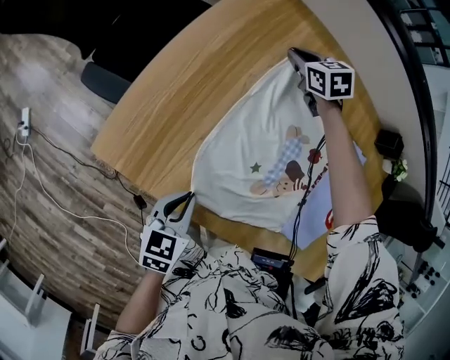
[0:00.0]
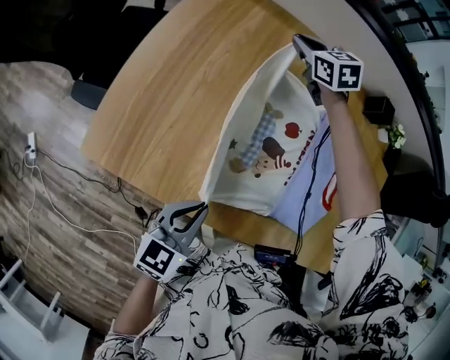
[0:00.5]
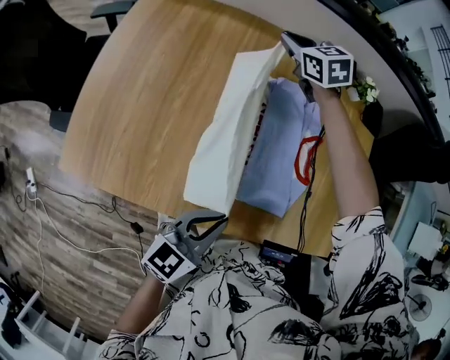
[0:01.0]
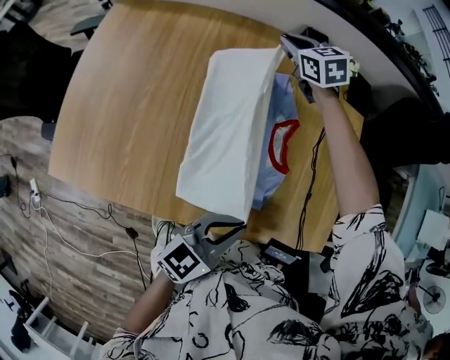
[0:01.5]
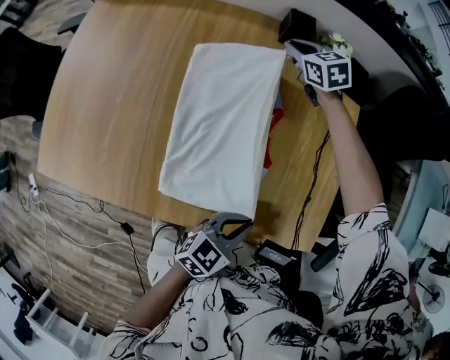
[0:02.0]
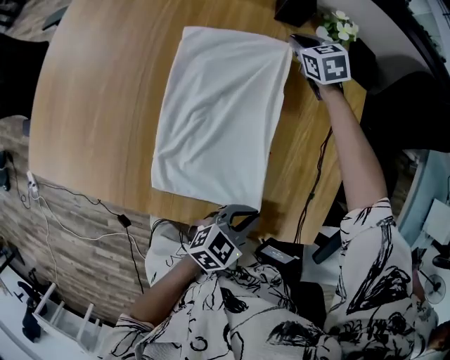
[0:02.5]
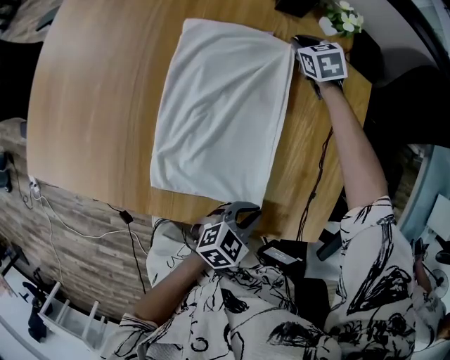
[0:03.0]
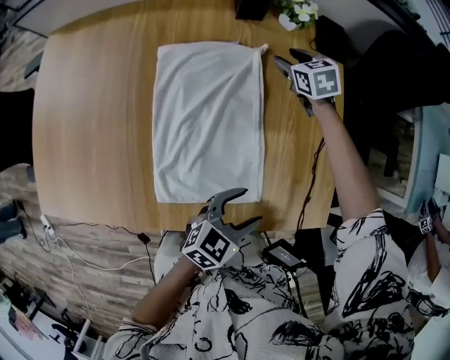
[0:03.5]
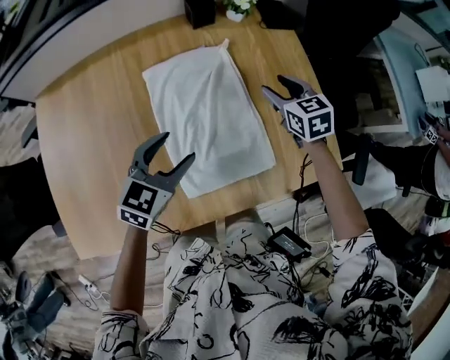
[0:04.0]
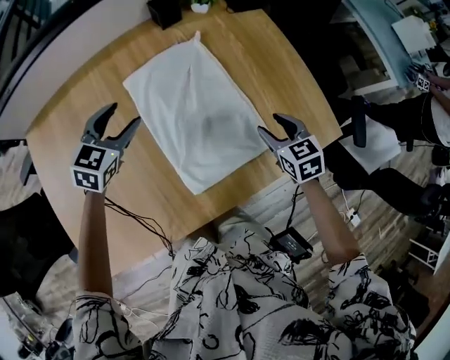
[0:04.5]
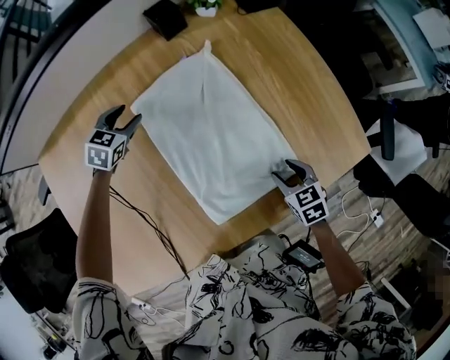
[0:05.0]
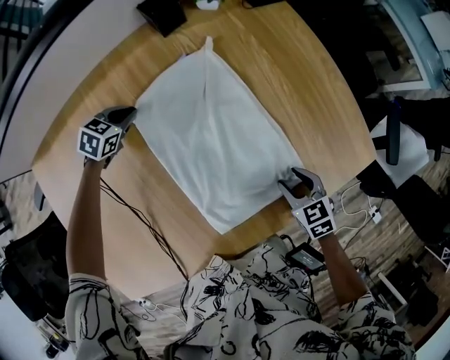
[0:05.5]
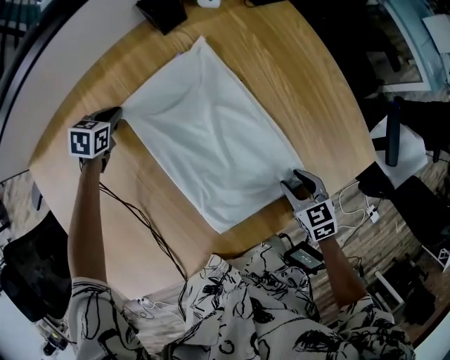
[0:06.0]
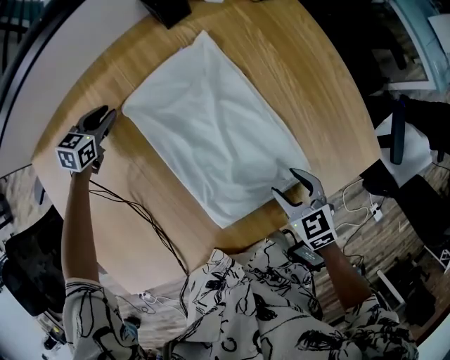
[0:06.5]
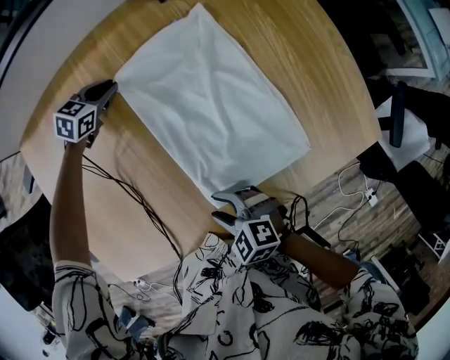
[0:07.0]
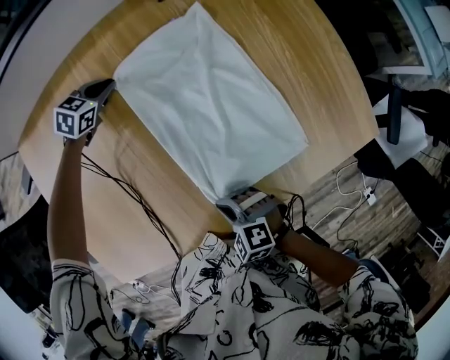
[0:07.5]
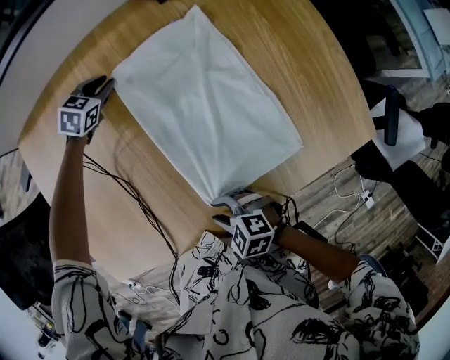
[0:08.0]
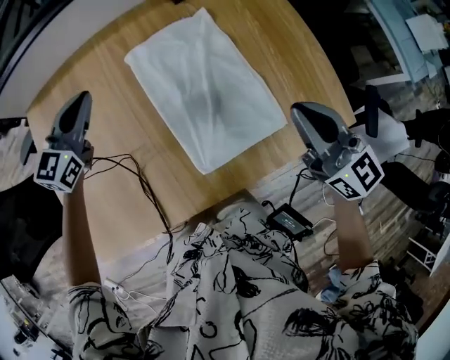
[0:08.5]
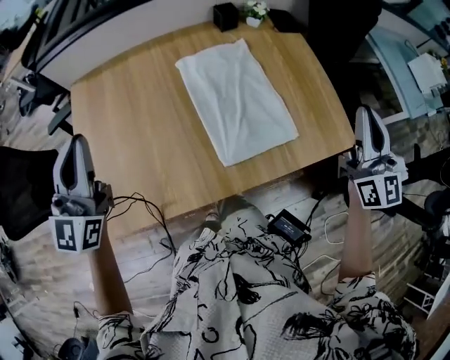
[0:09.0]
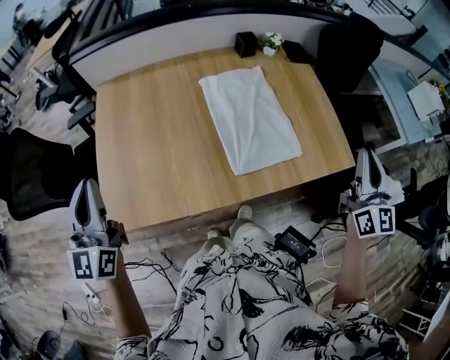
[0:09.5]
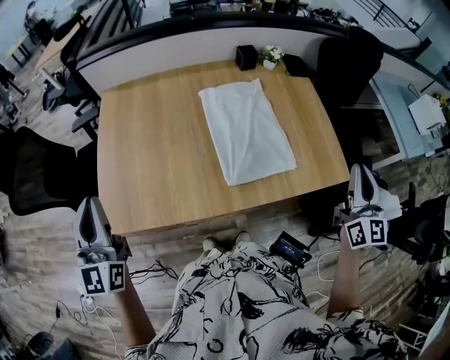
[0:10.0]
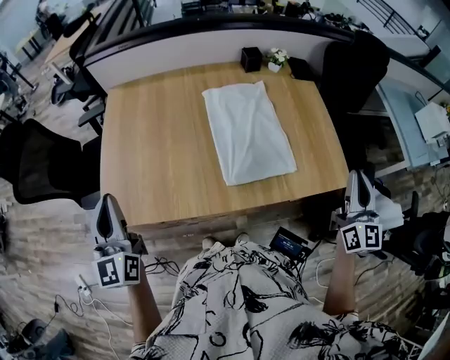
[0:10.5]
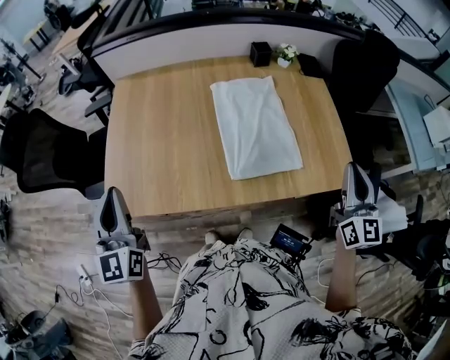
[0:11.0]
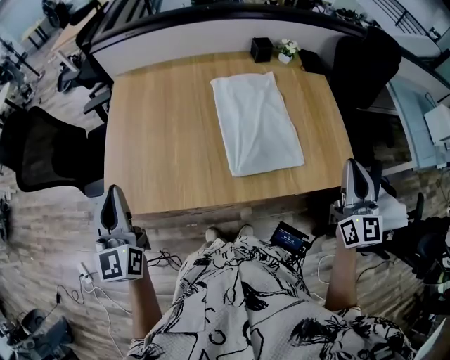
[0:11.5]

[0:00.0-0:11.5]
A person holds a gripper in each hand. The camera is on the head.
0:00.0 to 0:02.0: The two grippers travel together, some 60 cm. The left gripper turns by about 50 degrees.
0:02.0 to 0:04.0: The left gripper goes some 25 cm to the left, turns by some 20 degrees, and opens up. The right gripper shifts roughly 30 cm backward and to the right, turns by about 30 degrees, and opens.
0:04.0 to 0:06.0: The left gripper is displaced forward, to the left and downward by some 40 cm, swivels about 30 degrees, and closes up. Meanwhile the right gripper is displaced backward and downward by approximately 25 cm, and swivels some 20 degrees.
0:06.0 to 0:07.5: The right gripper moves to the left and backward, roughly 25 cm, twists some 50 degrees counterclockwise, seen from behind, and closes.
0:07.5 to 0:09.5: The left gripper shifts about 70 cm backward, upward and to the left, and points its fingers roughly 60 degrees further upward. The right gripper goes some 50 cm upward and to the right, and angles its fingers upward, by roughly 60 degrees.
0:09.5 to 0:11.5: The left gripper moves to the right and backward, about 10 cm.

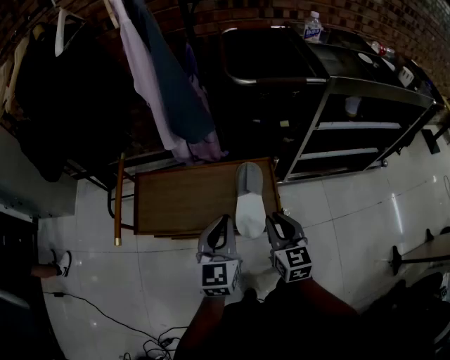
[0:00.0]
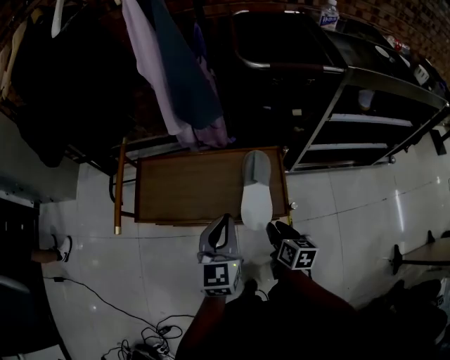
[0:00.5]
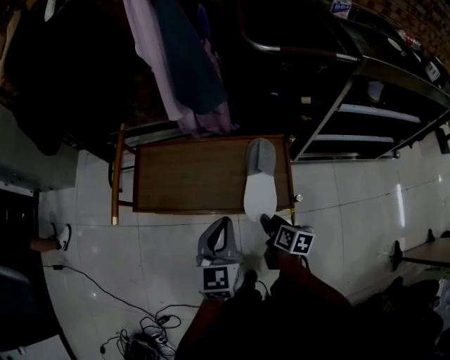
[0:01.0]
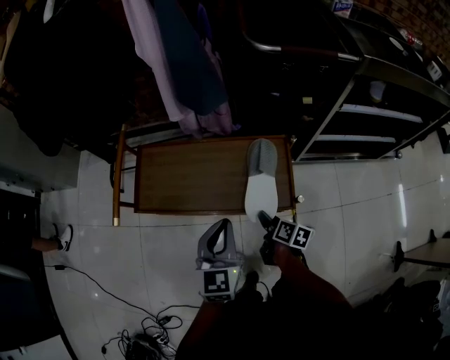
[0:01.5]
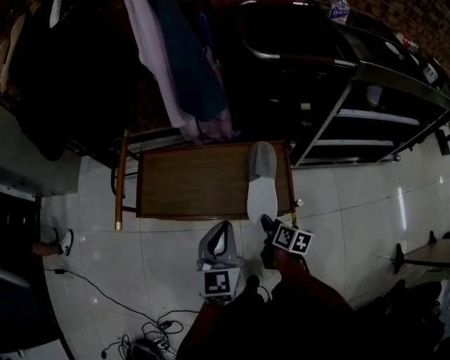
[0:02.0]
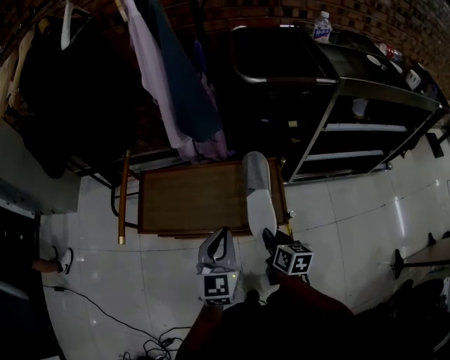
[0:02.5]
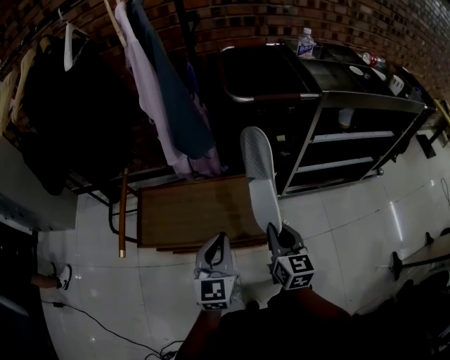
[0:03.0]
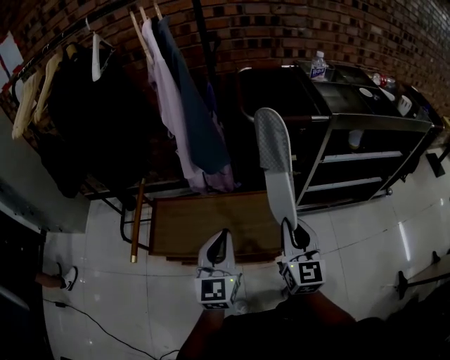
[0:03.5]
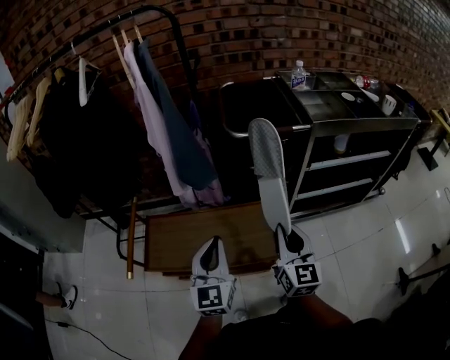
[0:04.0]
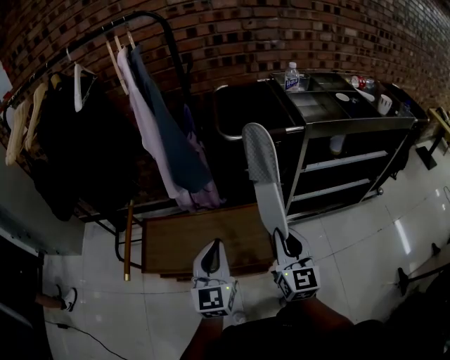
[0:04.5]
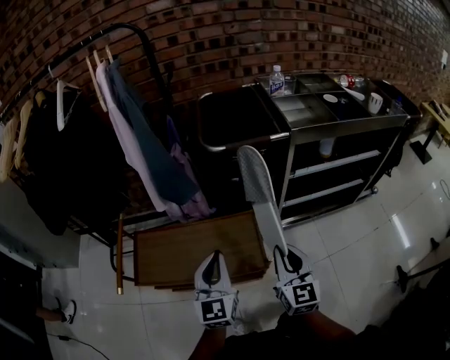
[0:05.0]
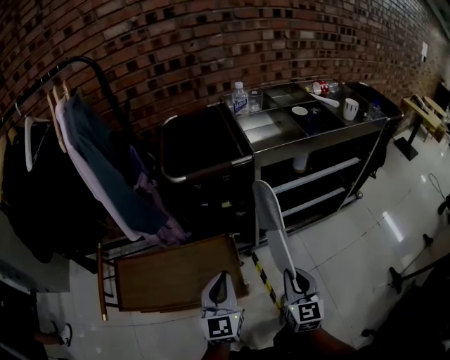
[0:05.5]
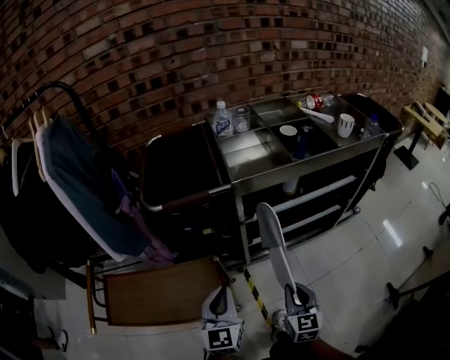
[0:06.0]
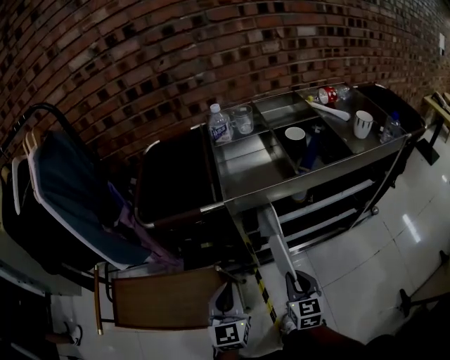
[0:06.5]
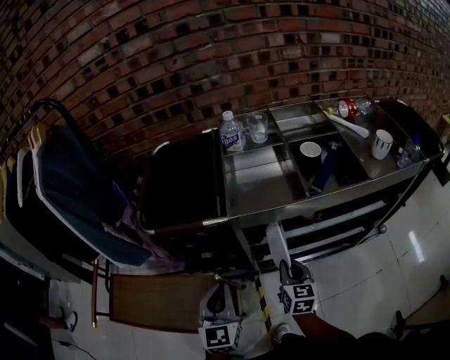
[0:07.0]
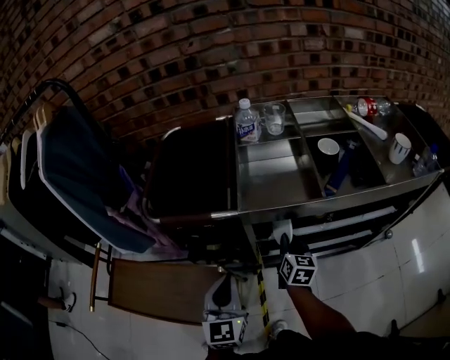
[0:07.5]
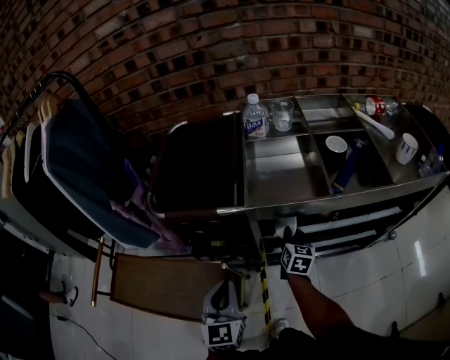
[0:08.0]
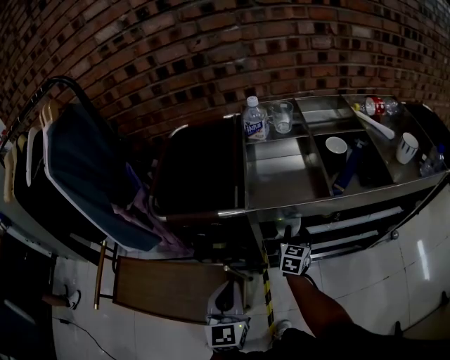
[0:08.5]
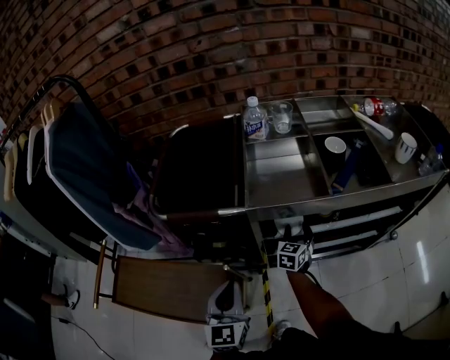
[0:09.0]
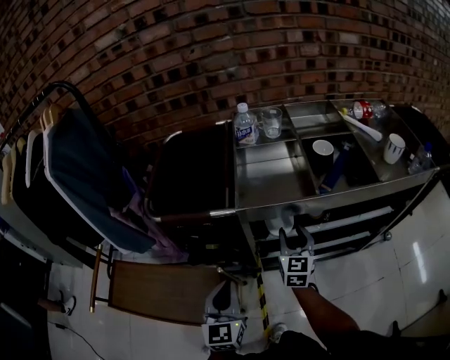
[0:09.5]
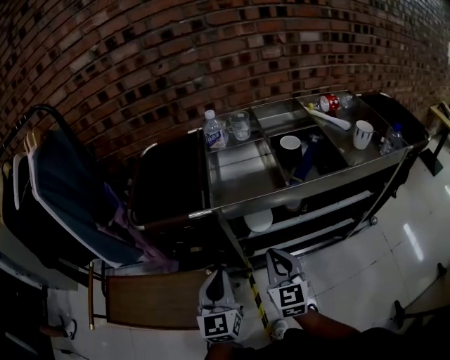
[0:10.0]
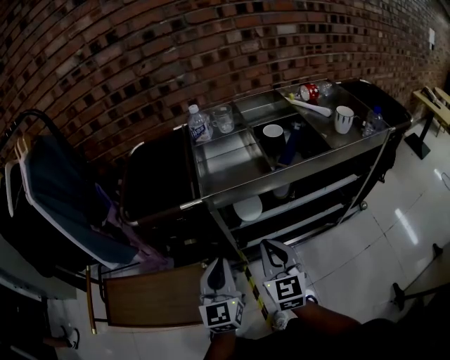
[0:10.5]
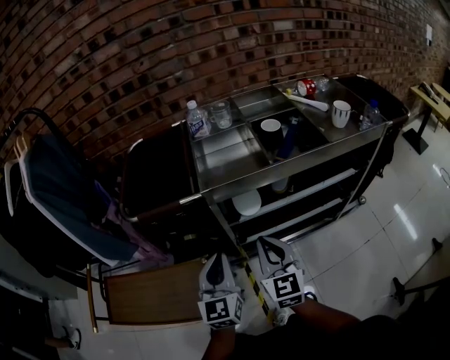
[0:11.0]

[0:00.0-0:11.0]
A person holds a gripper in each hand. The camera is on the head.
0:00.0 to 0:02.0: The left gripper shifts by approximately 5 cm. The right gripper is displaced downward by some 20 cm, twists approximately 50 degrees clockwise, seen from behind, and opens, then closes once more.
0:02.0 to 0:03.5: The left gripper goes about 10 cm upward, while the right gripper goes some 30 cm upward, and angles its fingers upward, by approximately 40 degrees.
0:03.5 to 0:05.5: Both grippers move to the right, some 20 cm.
0:05.5 to 0:07.5: The left gripper moves forward and to the right, some 20 cm, while the right gripper travels forward by about 35 cm, and changes its angle by roughly 20 degrees.
0:07.5 to 0:09.0: The right gripper moves downward and forward, approximately 10 cm, changes its angle by about 30 degrees, and opens.
0:09.0 to 0:11.0: The left gripper ends up about 5 cm from where it was; the right gripper is displaced backward and upward by about 30 cm, swivels roughly 30 degrees, and closes up.

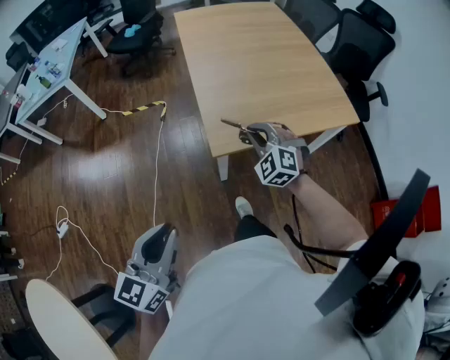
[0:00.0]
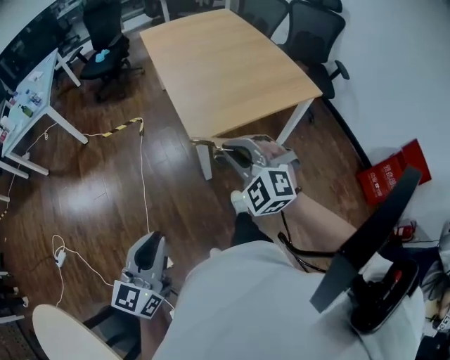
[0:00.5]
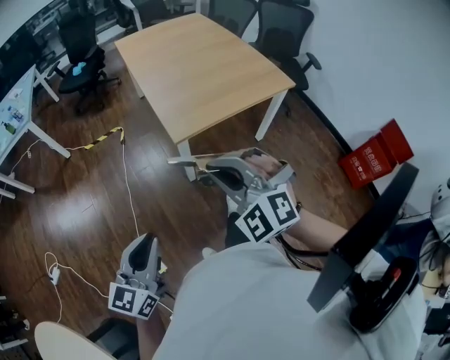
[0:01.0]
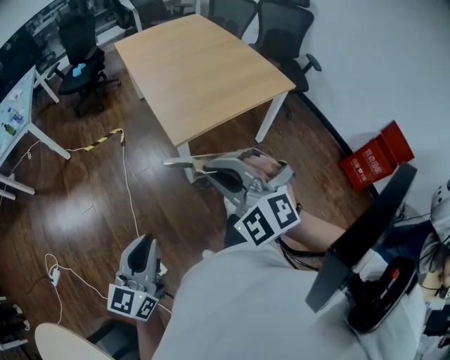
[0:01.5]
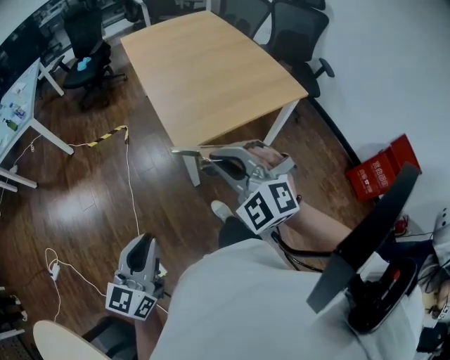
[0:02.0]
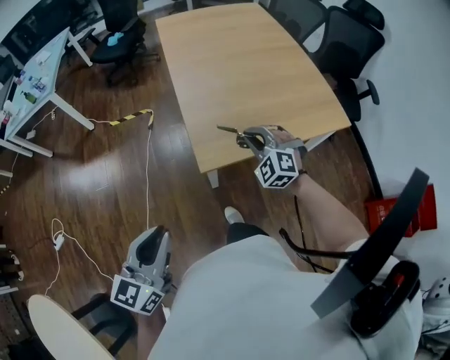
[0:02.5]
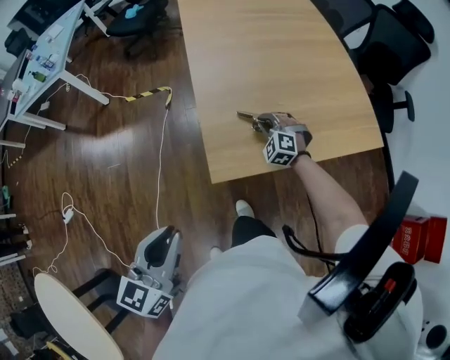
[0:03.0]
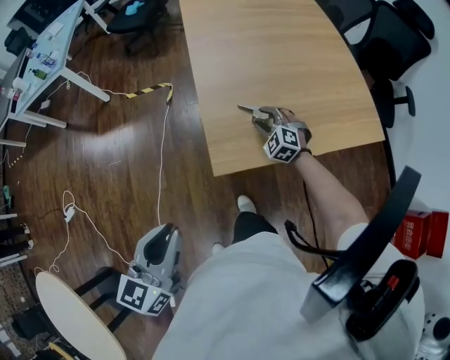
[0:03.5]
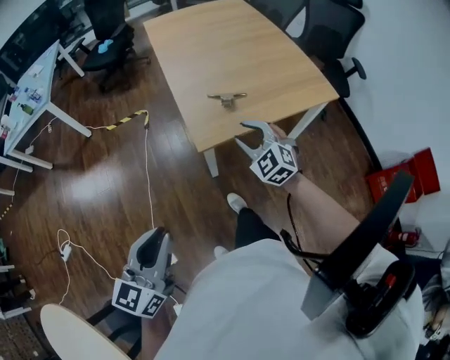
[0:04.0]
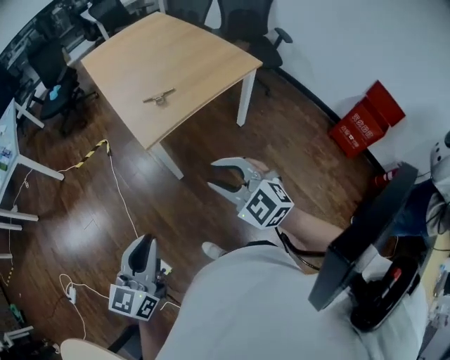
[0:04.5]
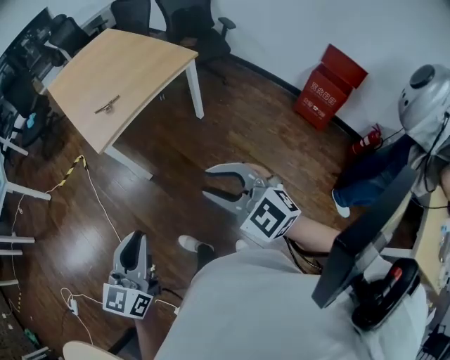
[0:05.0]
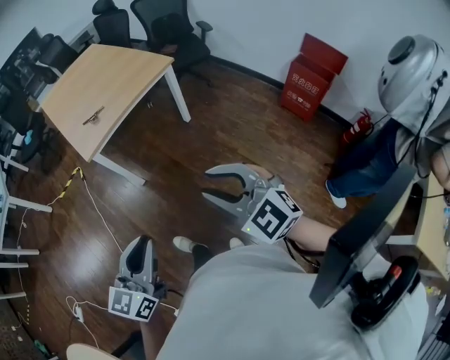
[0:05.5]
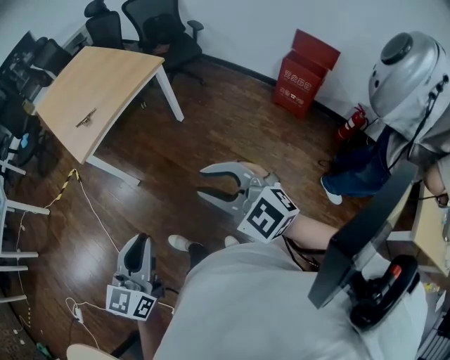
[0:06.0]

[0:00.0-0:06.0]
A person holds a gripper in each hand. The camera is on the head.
0:00.0 to 0:02.0: The right gripper travels backward and upward by some 25 cm, while the left gripper travels backward by about 5 cm.
0:02.0 to 0:04.0: The right gripper travels forward and downward by some 20 cm, and opens up; the left gripper reaches some 15 cm forward, then returns.
0:04.0 to 0:06.0: The left gripper goes about 35 cm to the right and backward, and changes its angle by about 30 degrees. Meanwhile the right gripper shifts some 50 cm backward and to the right, and changes its angle by about 20 degrees.
